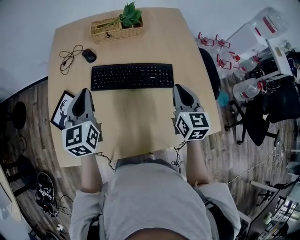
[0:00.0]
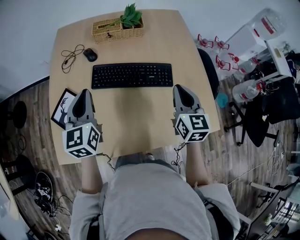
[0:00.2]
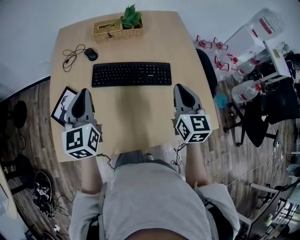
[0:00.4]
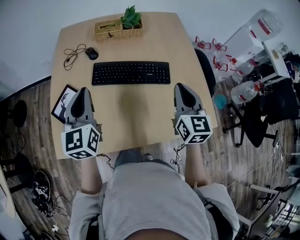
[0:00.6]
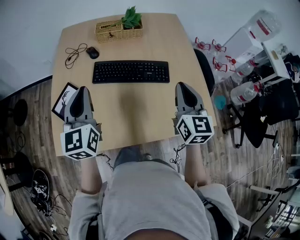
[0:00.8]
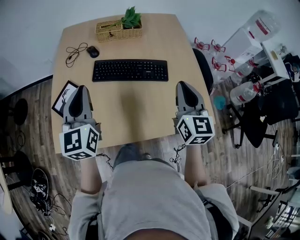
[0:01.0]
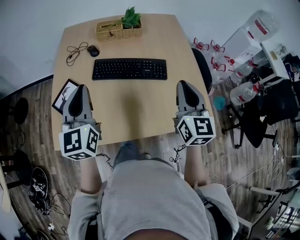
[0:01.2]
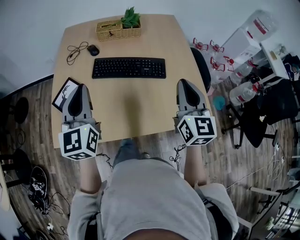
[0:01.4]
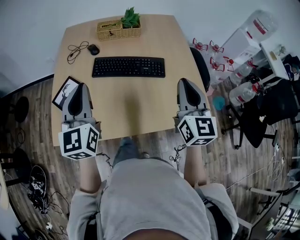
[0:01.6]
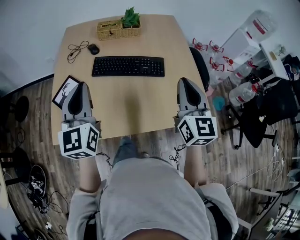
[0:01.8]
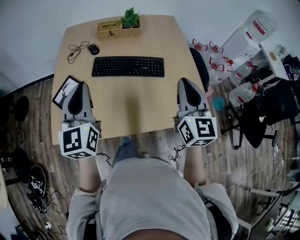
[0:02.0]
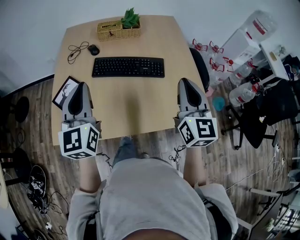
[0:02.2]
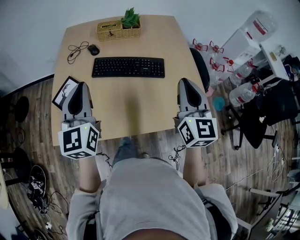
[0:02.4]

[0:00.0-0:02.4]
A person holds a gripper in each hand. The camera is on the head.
0:00.0 to 0:01.2: Both grippers move backward and upward, some 15 cm.
0:01.2 to 0:02.4: The grippers move only a little.

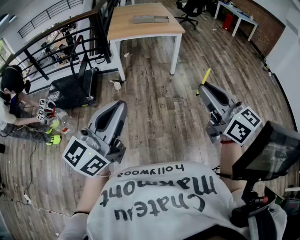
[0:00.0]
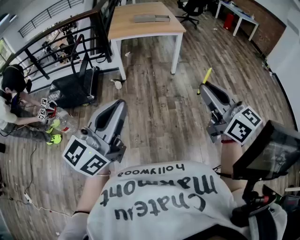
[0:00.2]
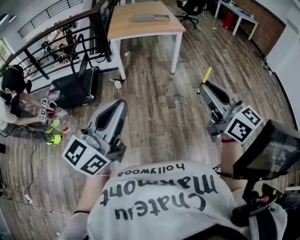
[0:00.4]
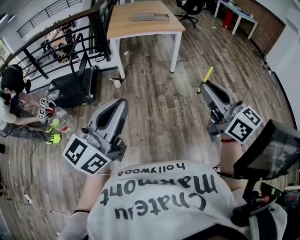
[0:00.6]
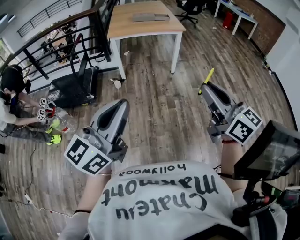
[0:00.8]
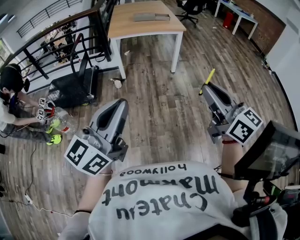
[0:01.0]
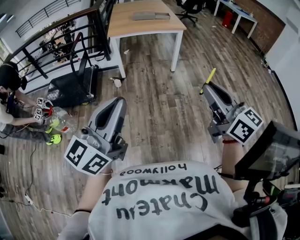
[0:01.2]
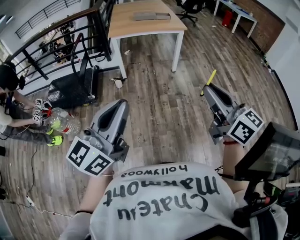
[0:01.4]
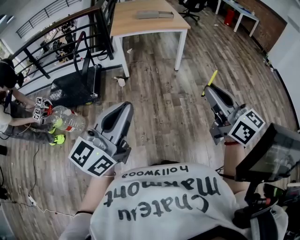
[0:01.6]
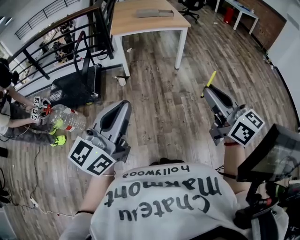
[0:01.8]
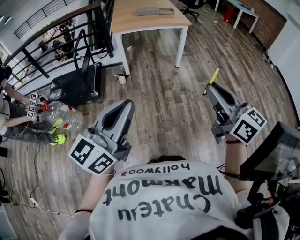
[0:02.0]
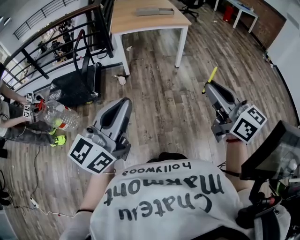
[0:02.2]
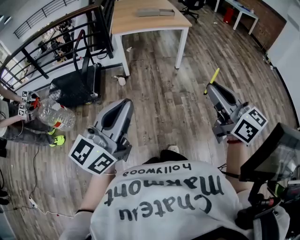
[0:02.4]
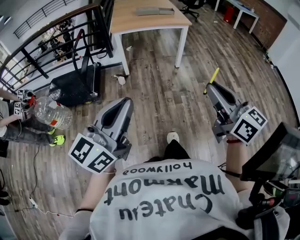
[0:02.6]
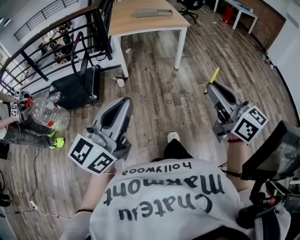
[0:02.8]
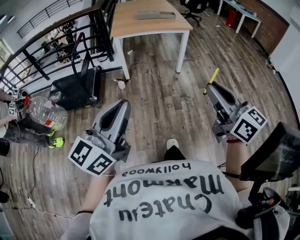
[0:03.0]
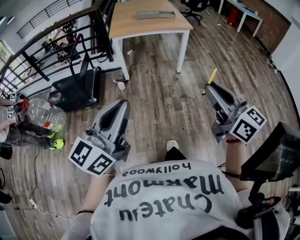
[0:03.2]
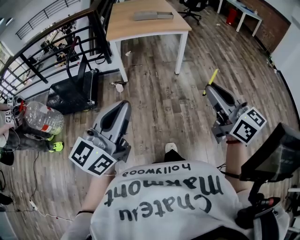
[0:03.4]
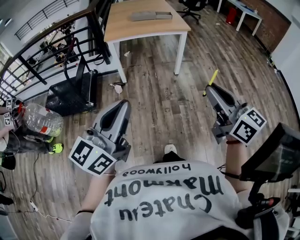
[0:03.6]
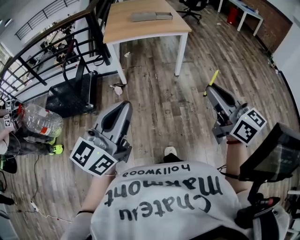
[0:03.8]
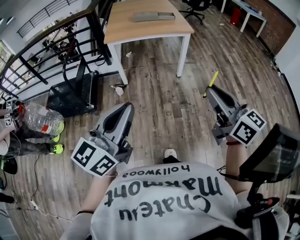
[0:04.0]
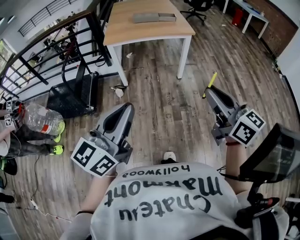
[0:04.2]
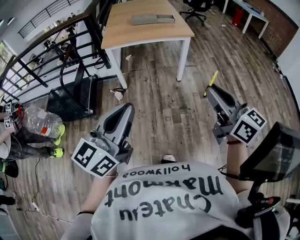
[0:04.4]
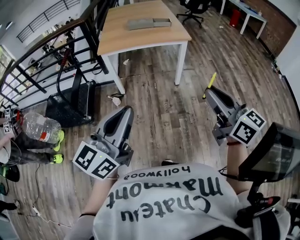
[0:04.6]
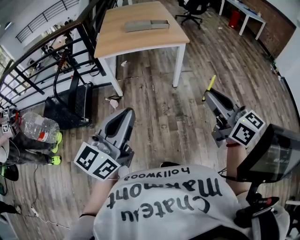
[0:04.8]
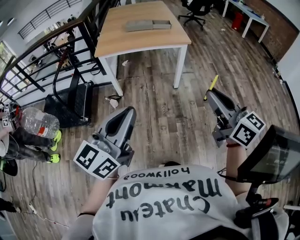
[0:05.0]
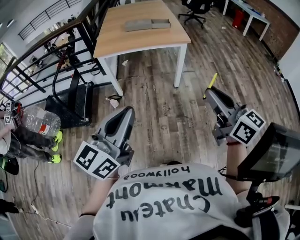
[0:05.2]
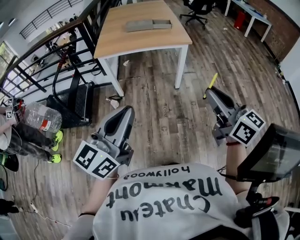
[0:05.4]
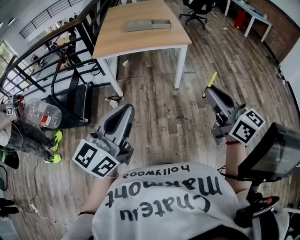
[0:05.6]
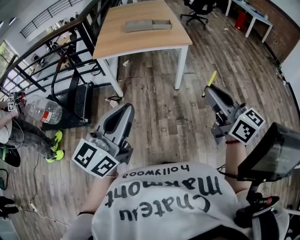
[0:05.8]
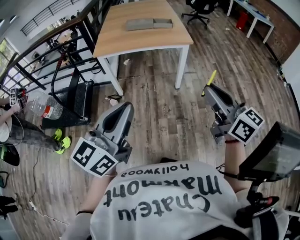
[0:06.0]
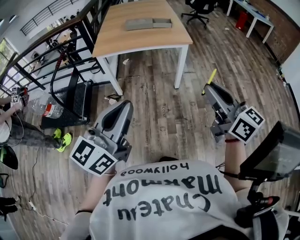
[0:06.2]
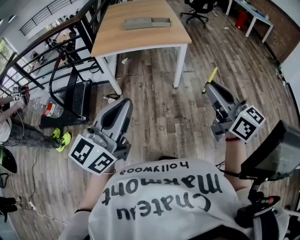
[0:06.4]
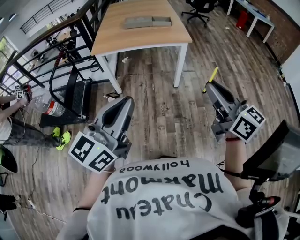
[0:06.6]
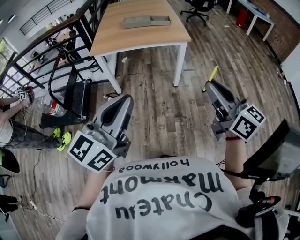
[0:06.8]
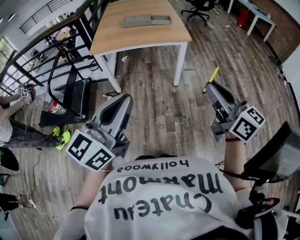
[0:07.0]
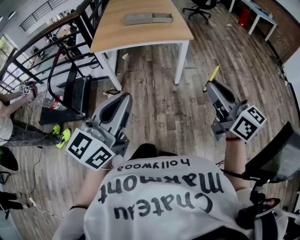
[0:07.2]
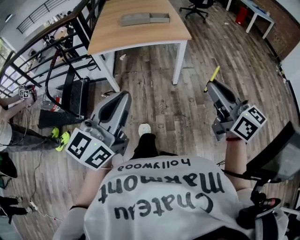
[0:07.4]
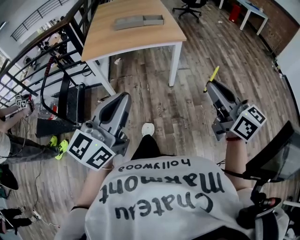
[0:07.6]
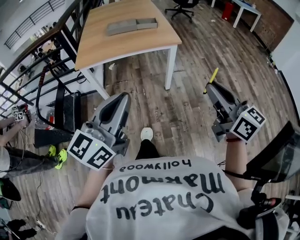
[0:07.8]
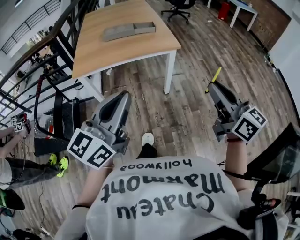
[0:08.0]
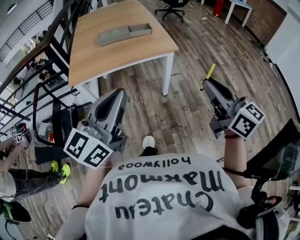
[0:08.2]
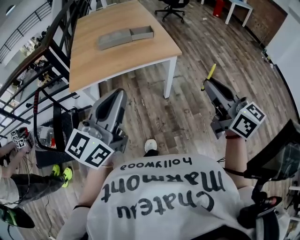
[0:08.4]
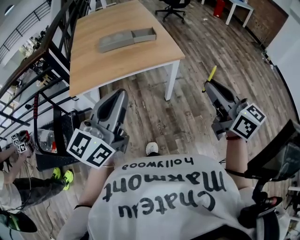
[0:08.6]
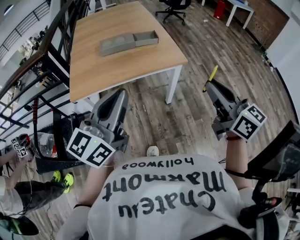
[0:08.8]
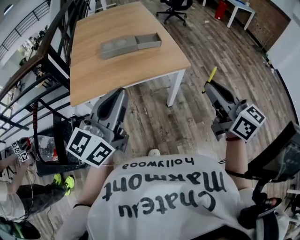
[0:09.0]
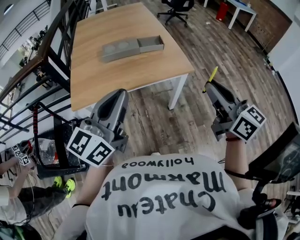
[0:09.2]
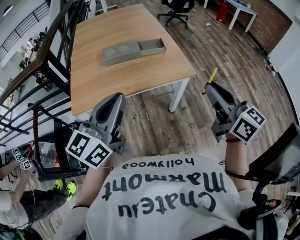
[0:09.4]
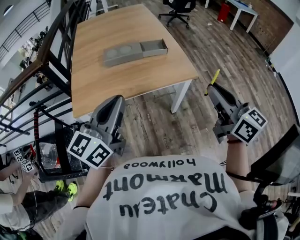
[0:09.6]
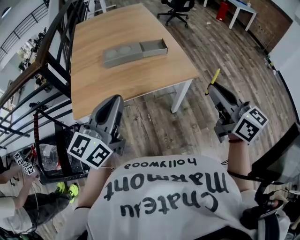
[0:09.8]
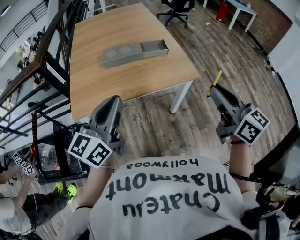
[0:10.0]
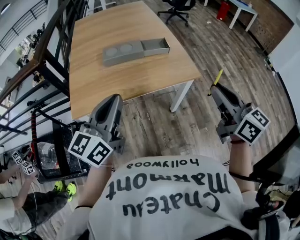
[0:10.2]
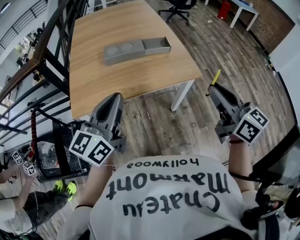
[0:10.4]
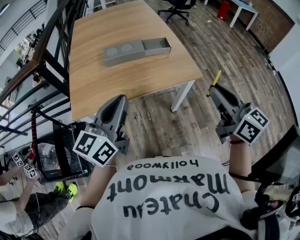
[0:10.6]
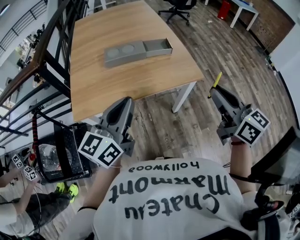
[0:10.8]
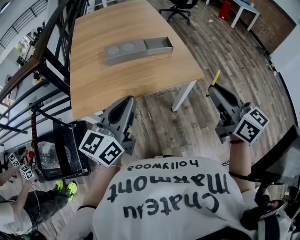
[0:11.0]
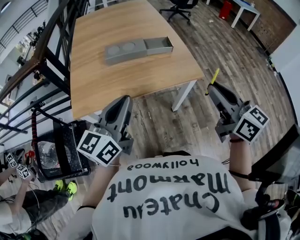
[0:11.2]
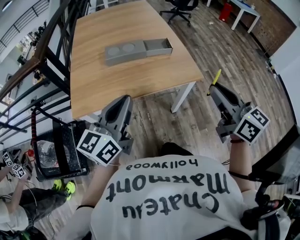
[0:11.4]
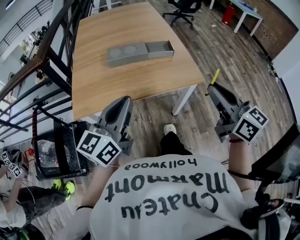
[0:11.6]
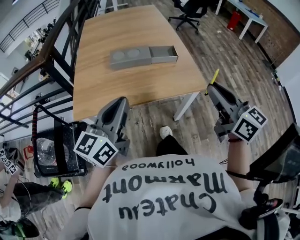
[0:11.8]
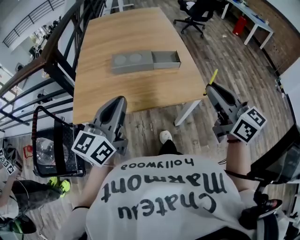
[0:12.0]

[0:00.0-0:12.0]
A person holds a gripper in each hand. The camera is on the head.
0:00.0 to 0:01.6: The right gripper changes place by about 5 cm, while the left gripper travels to the left by some 5 cm.
0:01.6 to 0:03.0: The two grippers go roughly 5 cm forward.
0:03.0 to 0:04.4: The right gripper shifts roughly 20 cm forward. The left gripper heads forward and to the right, covering some 20 cm.
0:04.4 to 0:06.0: Both grippers move forward and to the right, some 15 cm.
0:06.0 to 0:07.6: The left gripper goes about 10 cm forward, while the right gripper moves forward, about 5 cm.
0:07.6 to 0:09.0: The grippers both shift forward by about 30 cm.
0:09.0 to 0:10.4: The right gripper heads forward, covering about 10 cm; the left gripper shifts approximately 15 cm forward, to the left and downward.
0:10.4 to 0:12.0: The right gripper travels forward by some 10 cm, while the left gripper shifts about 5 cm forward.

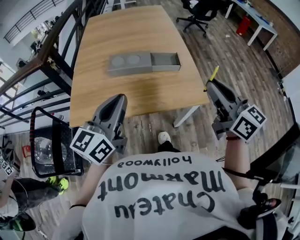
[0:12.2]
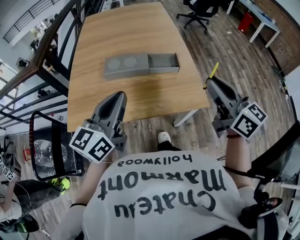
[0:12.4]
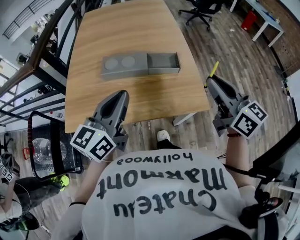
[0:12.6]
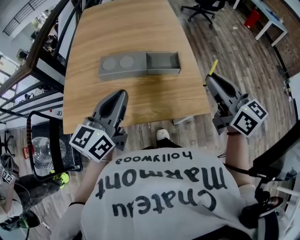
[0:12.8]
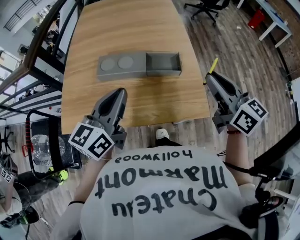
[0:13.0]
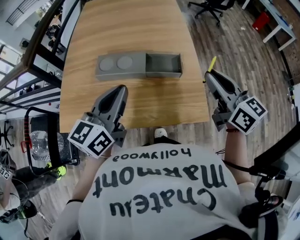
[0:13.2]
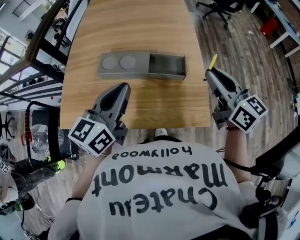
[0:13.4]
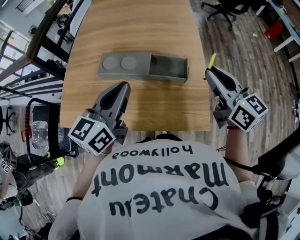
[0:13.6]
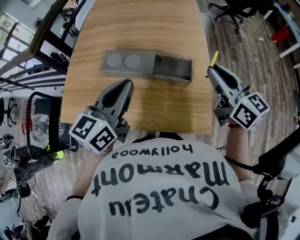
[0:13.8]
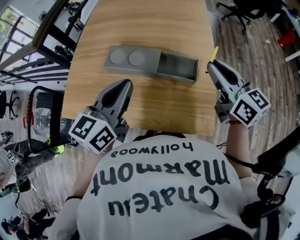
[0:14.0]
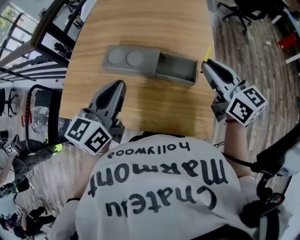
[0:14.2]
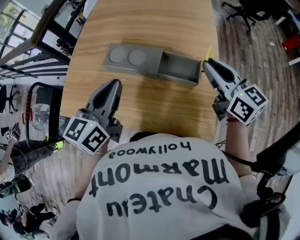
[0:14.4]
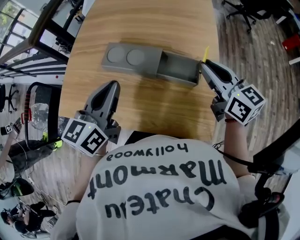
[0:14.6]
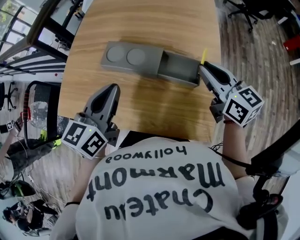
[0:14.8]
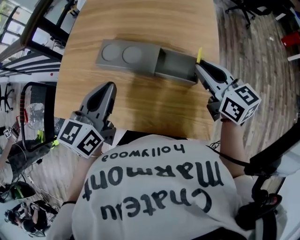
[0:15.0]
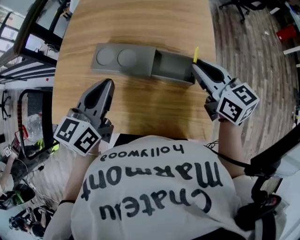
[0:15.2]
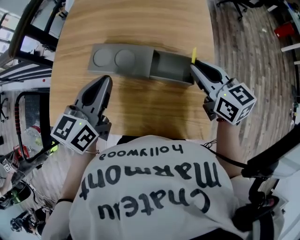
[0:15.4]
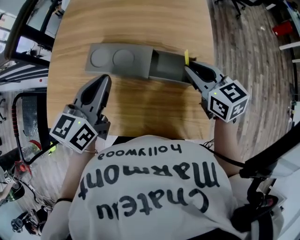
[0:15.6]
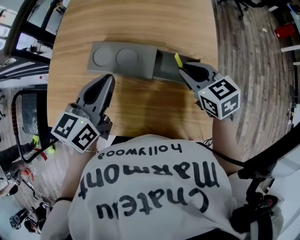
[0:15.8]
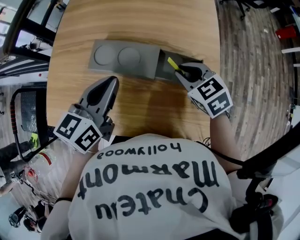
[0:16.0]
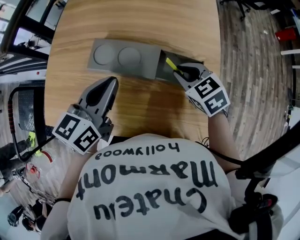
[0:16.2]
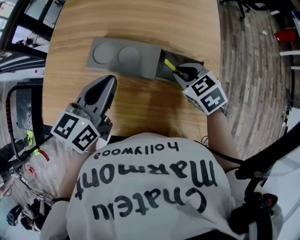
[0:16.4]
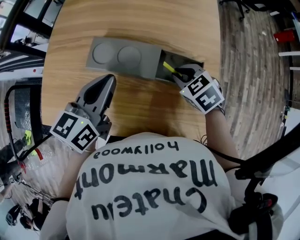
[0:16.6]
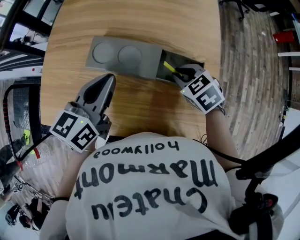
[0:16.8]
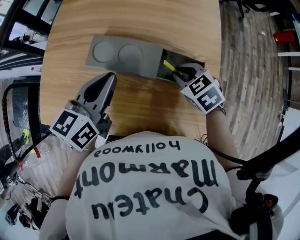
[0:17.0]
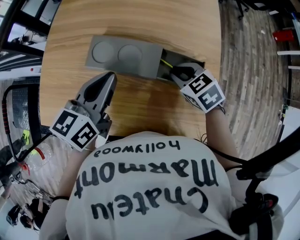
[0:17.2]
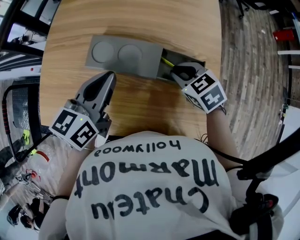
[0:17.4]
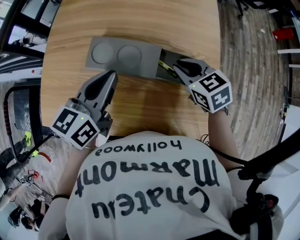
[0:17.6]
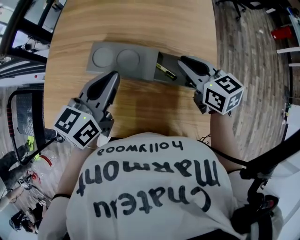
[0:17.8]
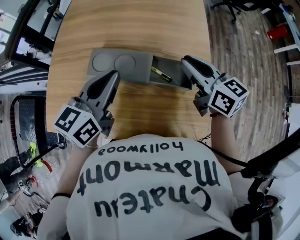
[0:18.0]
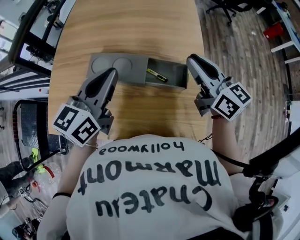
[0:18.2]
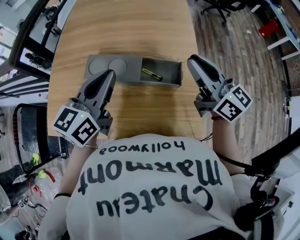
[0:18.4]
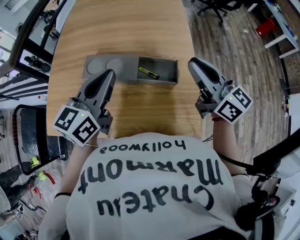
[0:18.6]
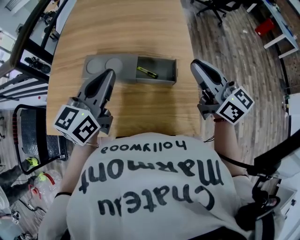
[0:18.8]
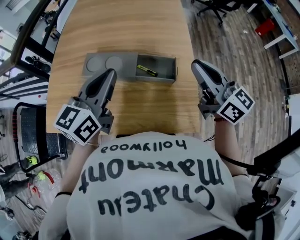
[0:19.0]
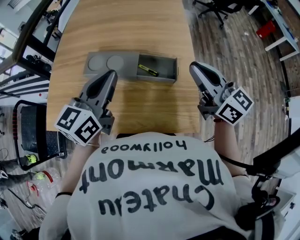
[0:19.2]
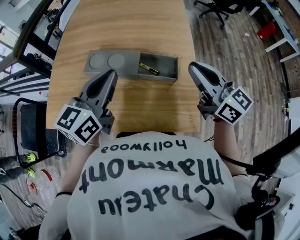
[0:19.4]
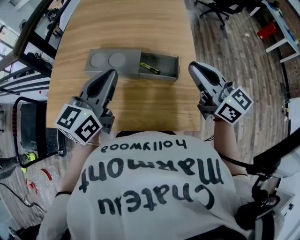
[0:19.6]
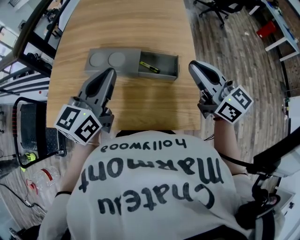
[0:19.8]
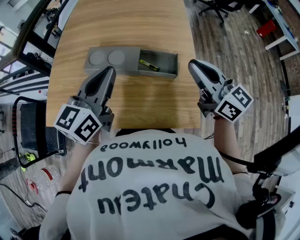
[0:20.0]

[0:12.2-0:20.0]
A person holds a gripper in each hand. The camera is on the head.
0:12.2 to 0:13.8: The two grippers go about 25 cm forward.
0:13.8 to 0:15.4: Both grippers travel together forward and downward, approximately 10 cm.
0:15.4 to 0:16.8: The right gripper heads downward and to the left, covering approximately 15 cm, and tilts its fingers some 40 degrees downward.
0:16.8 to 0:18.4: The right gripper moves upward, roughly 20 cm, and tilts its fingers approximately 60 degrees upward. Meanwhile the left gripper travels upward by about 10 cm.
0:18.4 to 0:20.0: The grippers stay close to where they were, moving slightly.

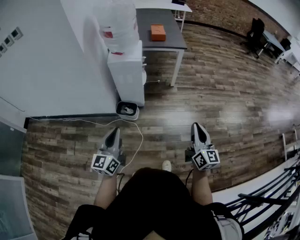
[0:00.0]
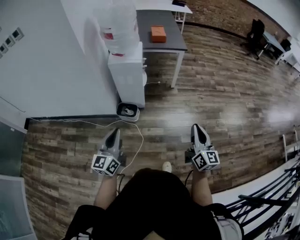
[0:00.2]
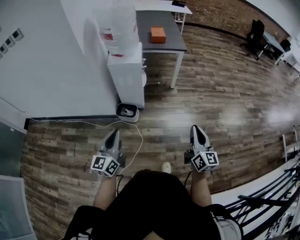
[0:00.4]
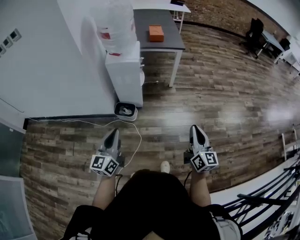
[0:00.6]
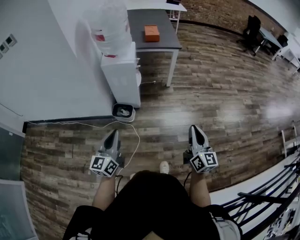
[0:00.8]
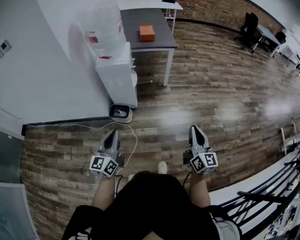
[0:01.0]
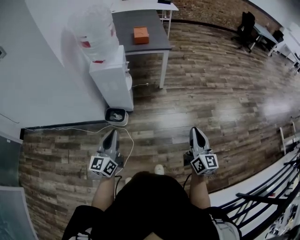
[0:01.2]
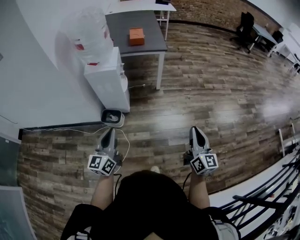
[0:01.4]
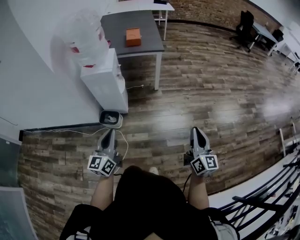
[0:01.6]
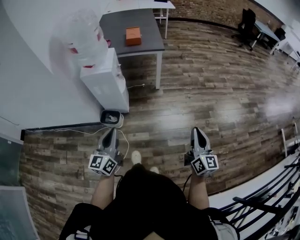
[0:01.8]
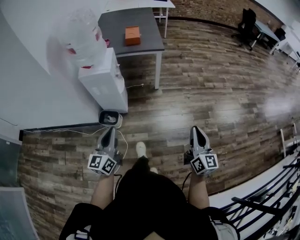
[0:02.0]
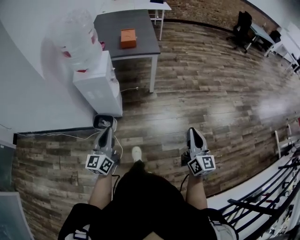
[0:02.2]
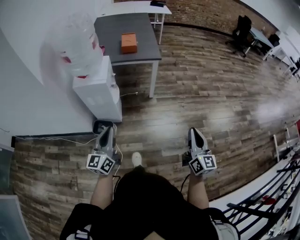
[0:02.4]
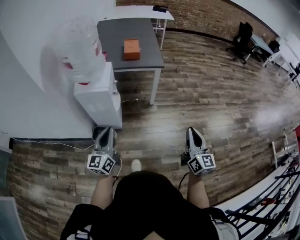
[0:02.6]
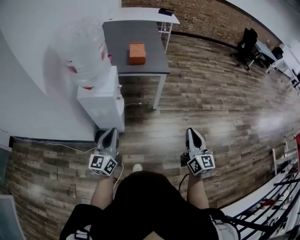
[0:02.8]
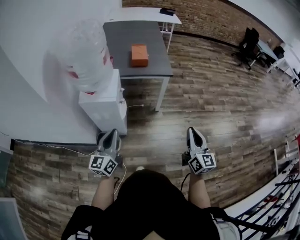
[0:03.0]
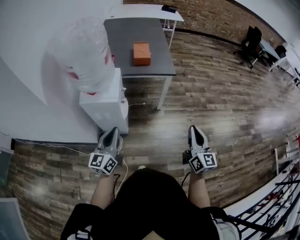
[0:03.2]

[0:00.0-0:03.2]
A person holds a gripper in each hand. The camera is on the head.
0:00.0 to 0:01.6: The right gripper moves to the right, roughly 15 cm; the left gripper shifts approximately 15 cm to the right and forward.
0:01.6 to 0:03.2: Both grippers move forward, roughly 25 cm.
